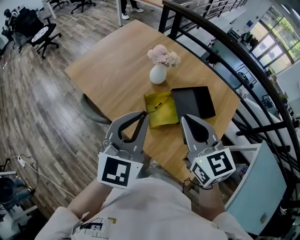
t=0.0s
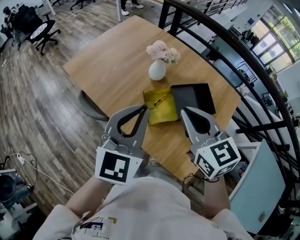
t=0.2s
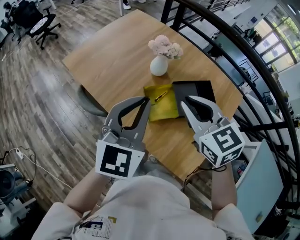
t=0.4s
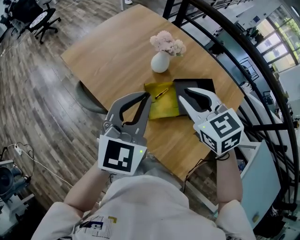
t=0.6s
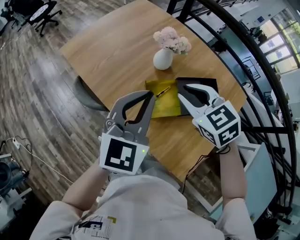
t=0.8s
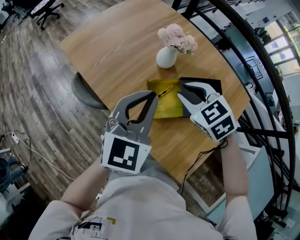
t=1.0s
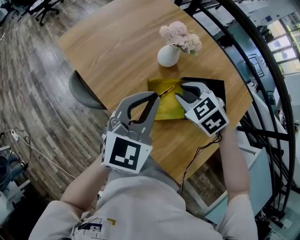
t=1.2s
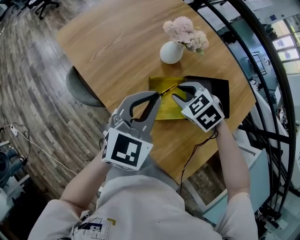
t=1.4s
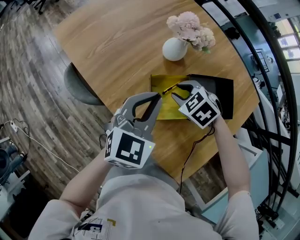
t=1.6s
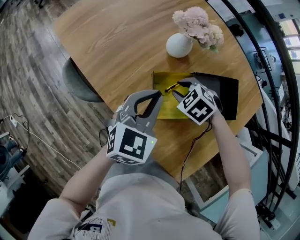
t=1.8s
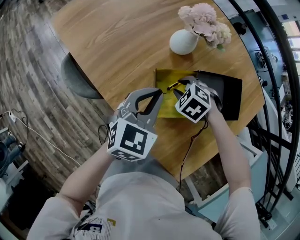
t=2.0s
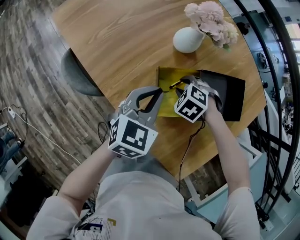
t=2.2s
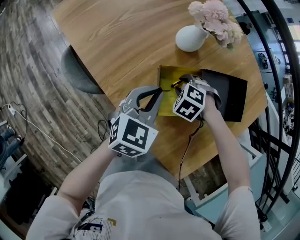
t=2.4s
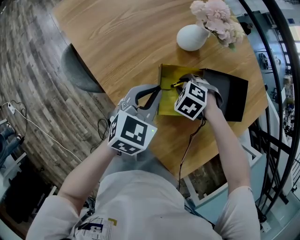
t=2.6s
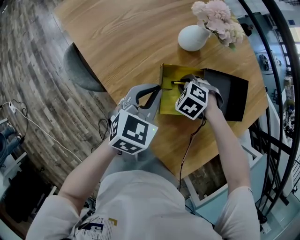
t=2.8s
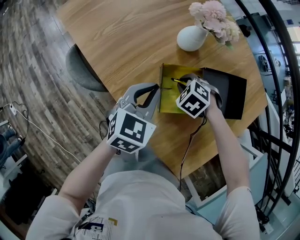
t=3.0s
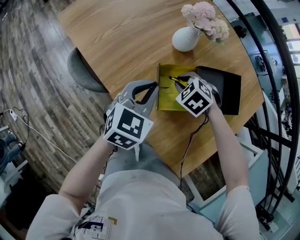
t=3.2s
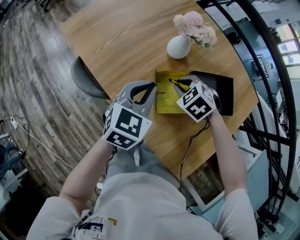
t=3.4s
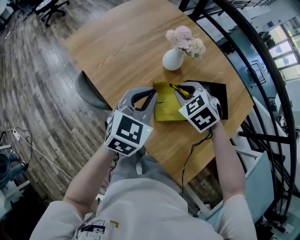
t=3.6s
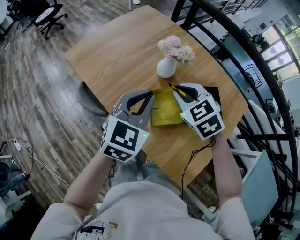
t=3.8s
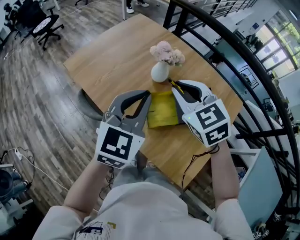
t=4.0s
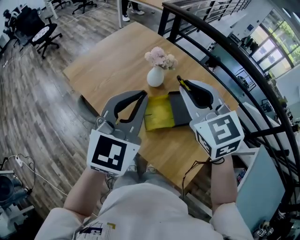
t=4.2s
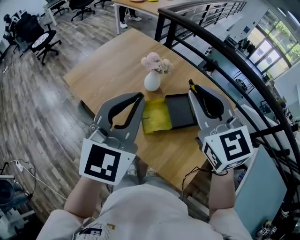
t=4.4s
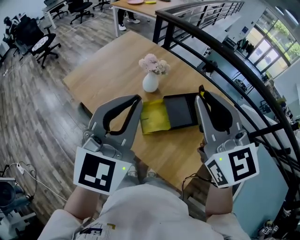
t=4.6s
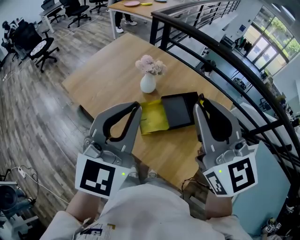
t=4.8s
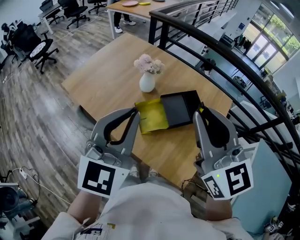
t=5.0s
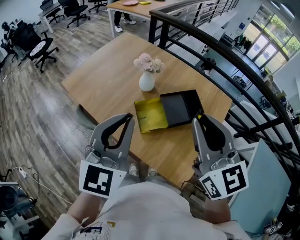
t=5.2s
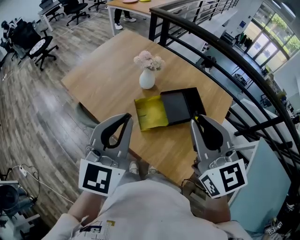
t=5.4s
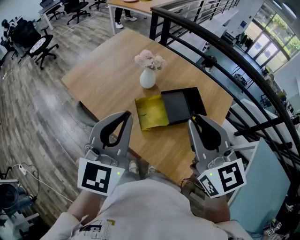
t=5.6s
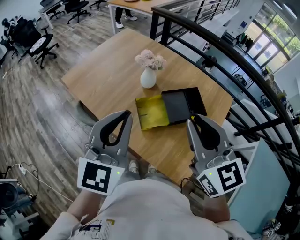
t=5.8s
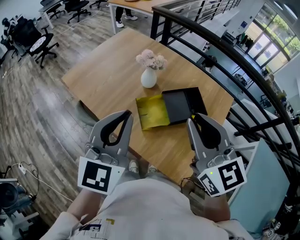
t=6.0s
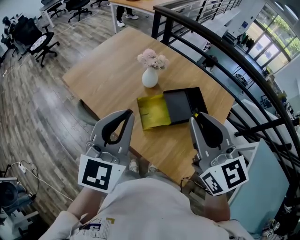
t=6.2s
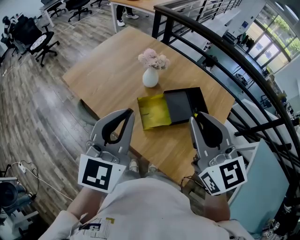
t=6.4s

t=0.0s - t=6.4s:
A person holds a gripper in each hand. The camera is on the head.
t=0.0s - t=1.6s: Both grippers move downward and forward, approximately 30 cm. The right gripper tilts its fingers some 50 degrees downward, and opens.
t=1.6s - t=3.2s: Both grippers move downward, approximately 5 cm.
t=3.2s - t=4.8s: The left gripper shifts roughly 40 cm upward and backward, and tips its fingers upward by some 30 degrees. The right gripper is displaced upward by some 50 cm, and tips its fingers upward by approximately 70 degrees.
t=4.8s - t=6.4s: Both grippers travel together downward, about 5 cm.

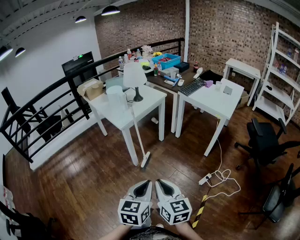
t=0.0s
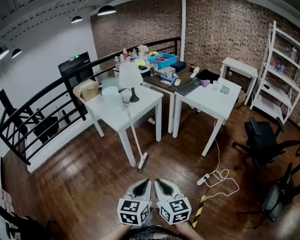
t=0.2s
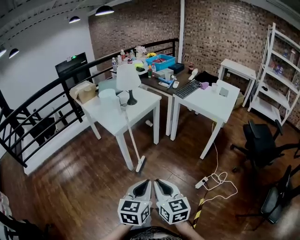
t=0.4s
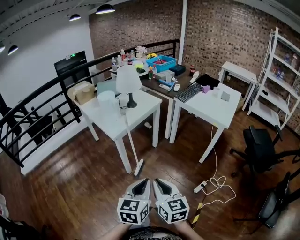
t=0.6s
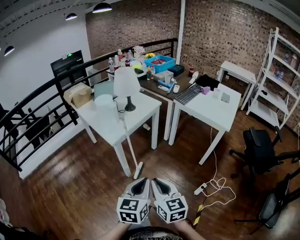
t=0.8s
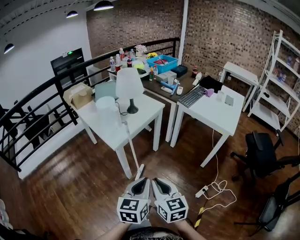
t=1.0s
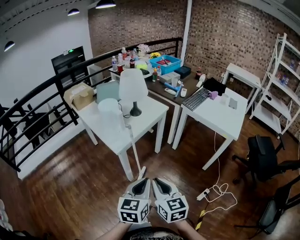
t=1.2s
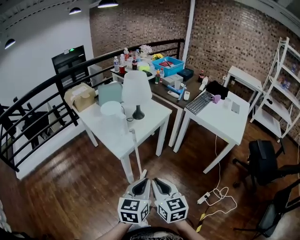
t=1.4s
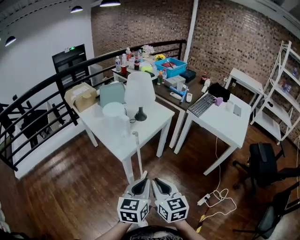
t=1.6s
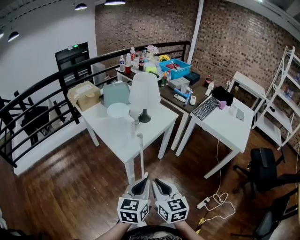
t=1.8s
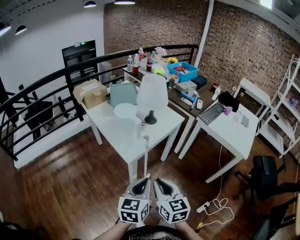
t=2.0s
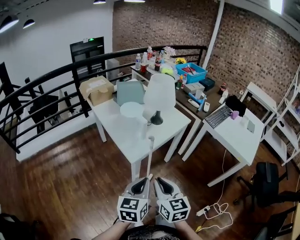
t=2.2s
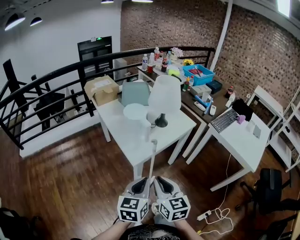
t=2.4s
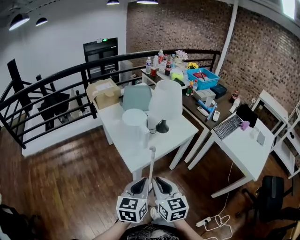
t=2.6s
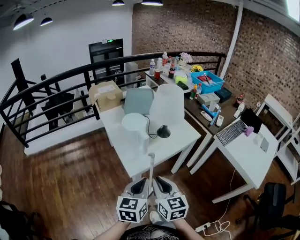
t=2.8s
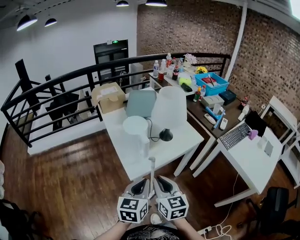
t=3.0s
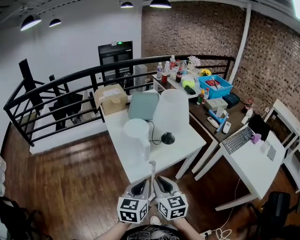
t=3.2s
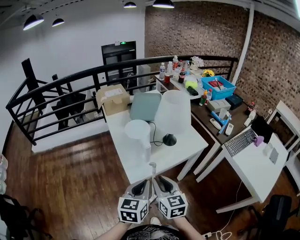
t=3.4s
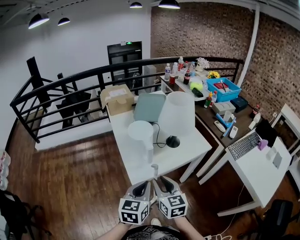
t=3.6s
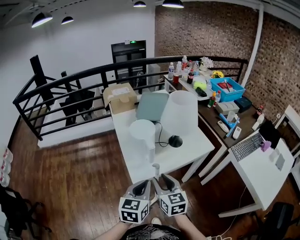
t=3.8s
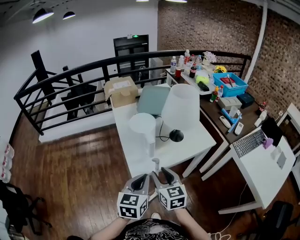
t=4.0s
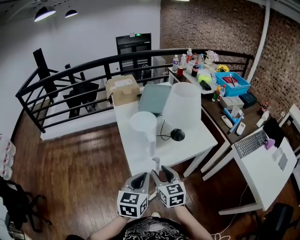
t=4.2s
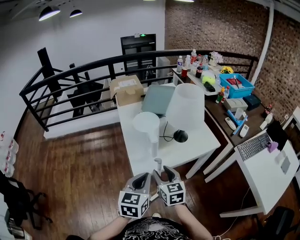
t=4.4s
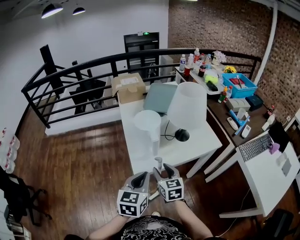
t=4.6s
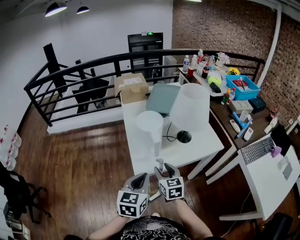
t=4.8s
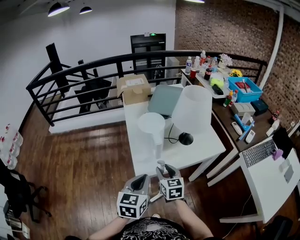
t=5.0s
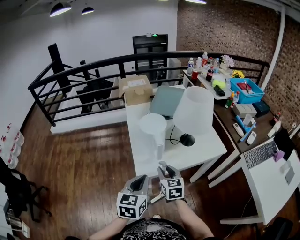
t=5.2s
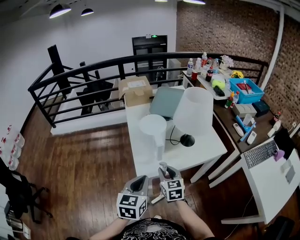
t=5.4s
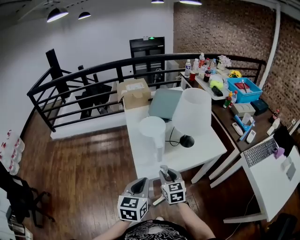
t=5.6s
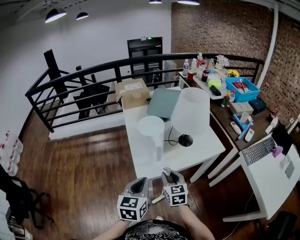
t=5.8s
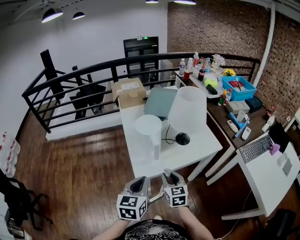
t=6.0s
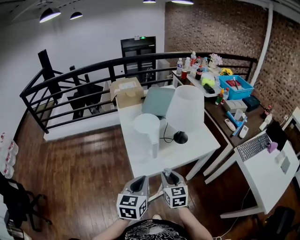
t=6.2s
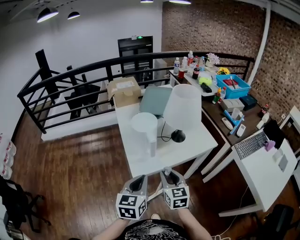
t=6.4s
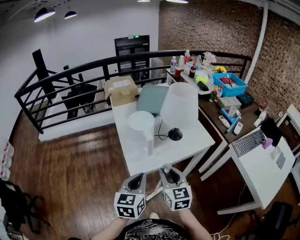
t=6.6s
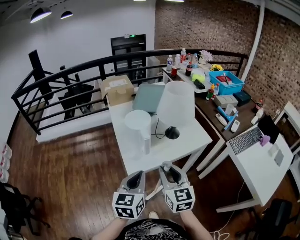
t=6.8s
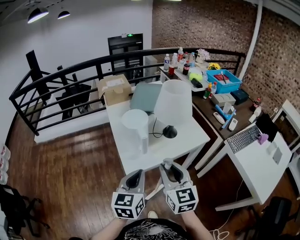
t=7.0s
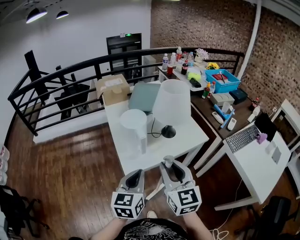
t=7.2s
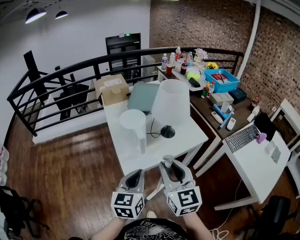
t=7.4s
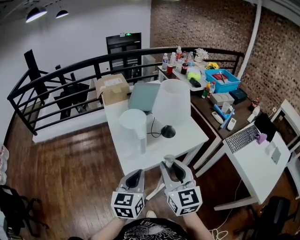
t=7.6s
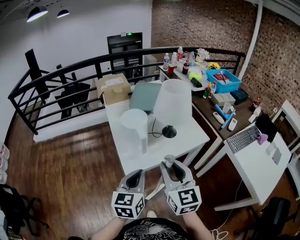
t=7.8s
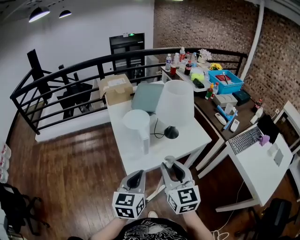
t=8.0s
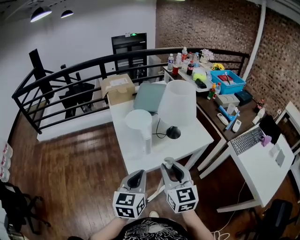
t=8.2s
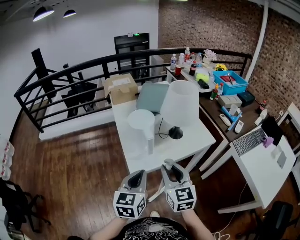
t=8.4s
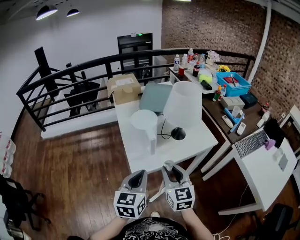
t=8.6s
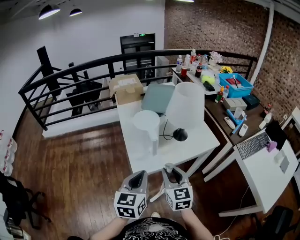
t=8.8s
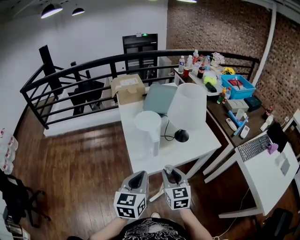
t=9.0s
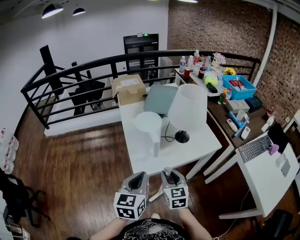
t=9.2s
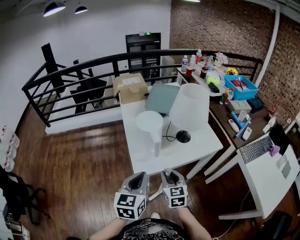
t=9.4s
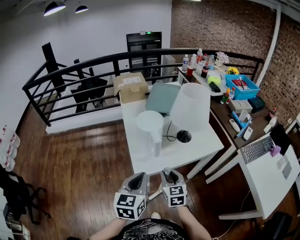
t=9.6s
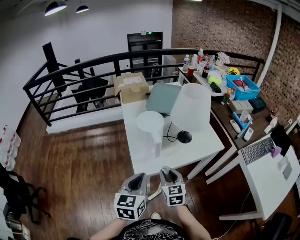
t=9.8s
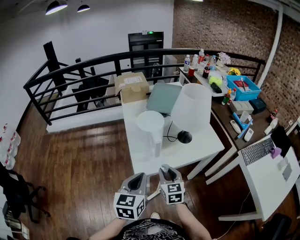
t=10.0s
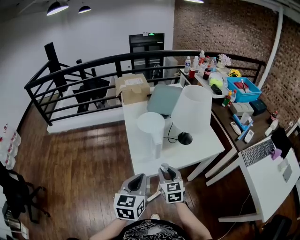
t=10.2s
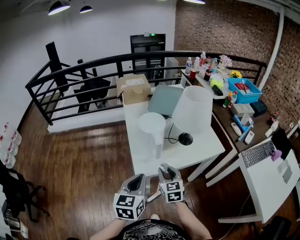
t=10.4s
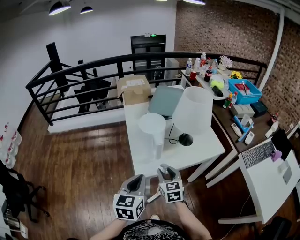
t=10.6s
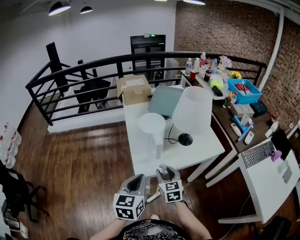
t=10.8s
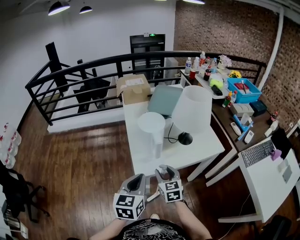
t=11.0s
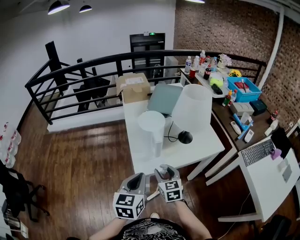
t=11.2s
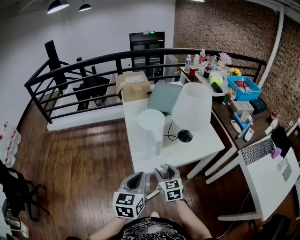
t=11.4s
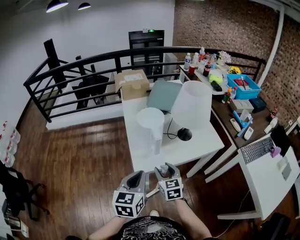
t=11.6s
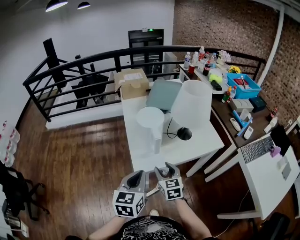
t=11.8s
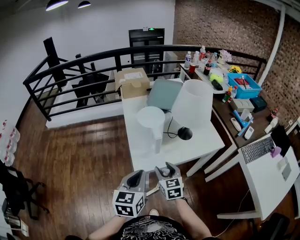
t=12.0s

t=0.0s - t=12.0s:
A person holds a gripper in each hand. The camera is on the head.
t=0.0s - t=1.6s: Both grippers travel together forward, roughly 30 cm.
t=1.6s - t=3.0s: The two grippers go about 15 cm forward.
t=3.0s - t=4.4s: The right gripper shifts approximately 10 cm forward and downward, and opens its fingers.
t=4.4s - t=6.0s: The grippers stay close to where they were, moving slightly.
t=6.0s - t=7.6s: The left gripper ends up about 5 cm from where it was. The right gripper moves upward, about 20 cm.
t=7.6s - t=9.0s: The right gripper goes about 15 cm downward.
t=9.0s - t=10.4s: The right gripper moves downward, about 5 cm.
t=10.4s - t=12.0s: The right gripper opens.

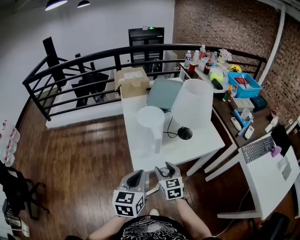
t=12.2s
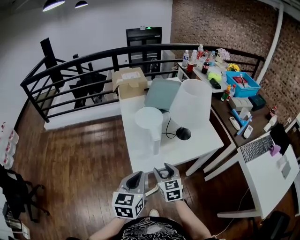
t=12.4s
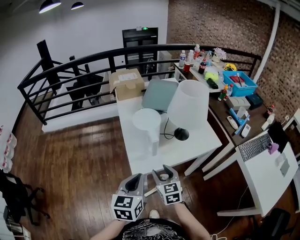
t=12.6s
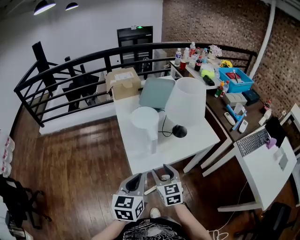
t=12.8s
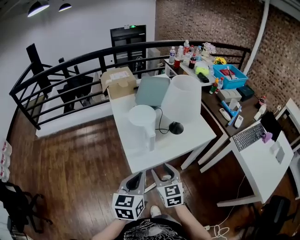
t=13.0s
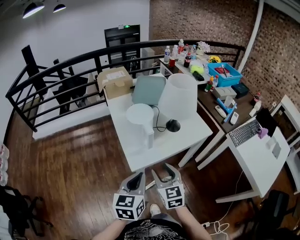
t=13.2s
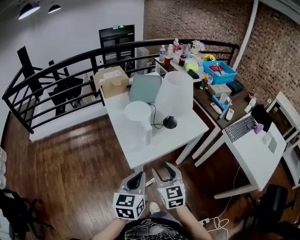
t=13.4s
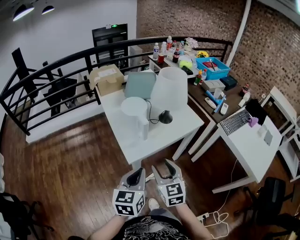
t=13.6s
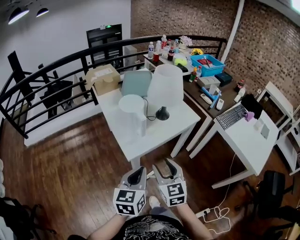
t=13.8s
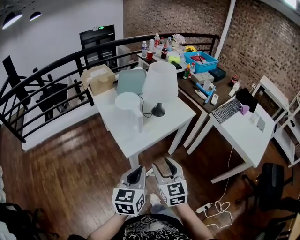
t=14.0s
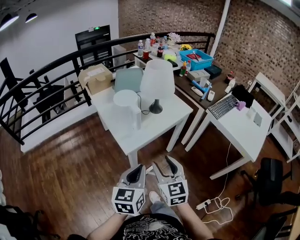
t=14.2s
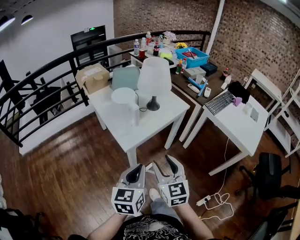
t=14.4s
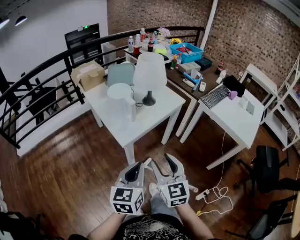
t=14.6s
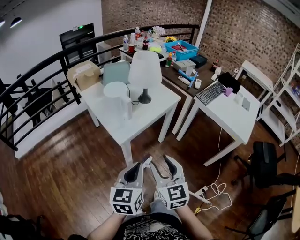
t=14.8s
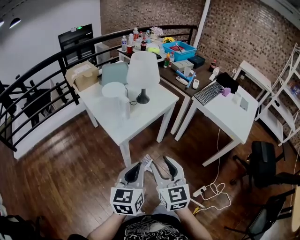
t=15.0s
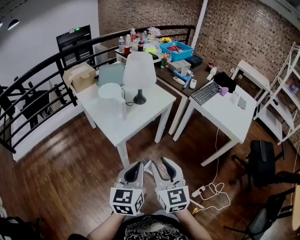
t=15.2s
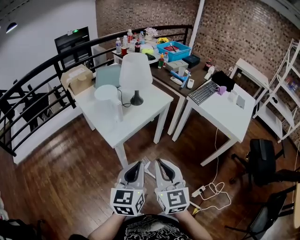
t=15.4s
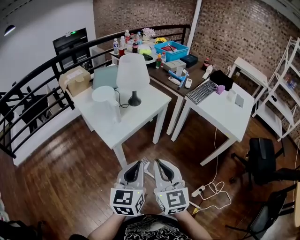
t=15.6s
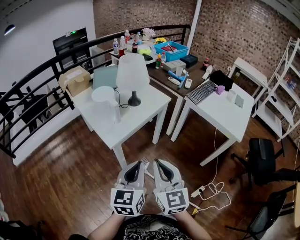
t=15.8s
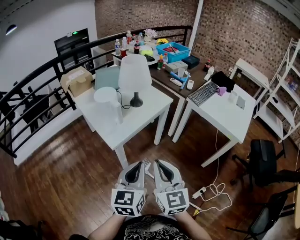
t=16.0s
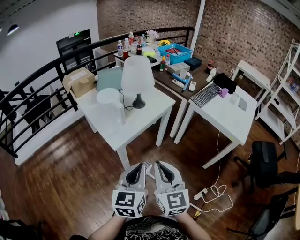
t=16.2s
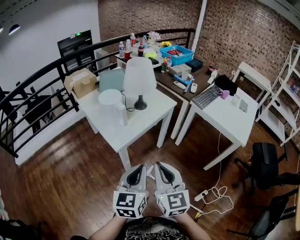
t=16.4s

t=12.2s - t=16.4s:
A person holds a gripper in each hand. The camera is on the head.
t=12.2s - t=13.6s: The right gripper is displaced backward and upward by approximately 15 cm, while the left gripper travels backward by about 5 cm.
t=13.6s - t=15.0s: The left gripper shifts about 10 cm backward, while the right gripper heads backward and upward, covering some 15 cm.
t=15.0s - t=16.4s: The right gripper closes its fingers.

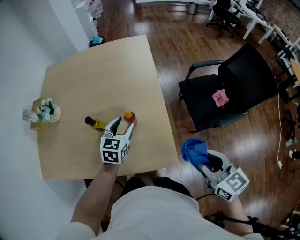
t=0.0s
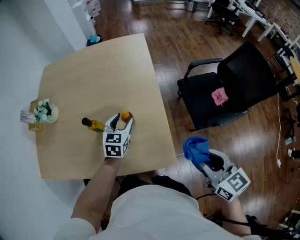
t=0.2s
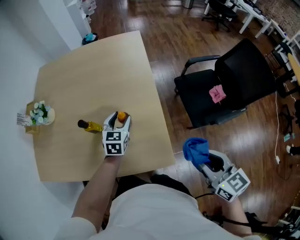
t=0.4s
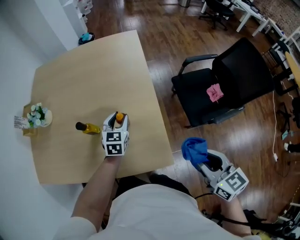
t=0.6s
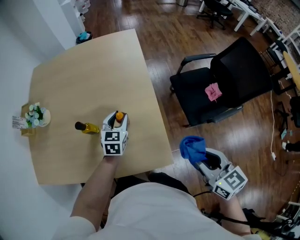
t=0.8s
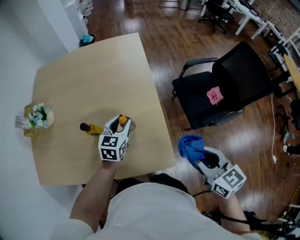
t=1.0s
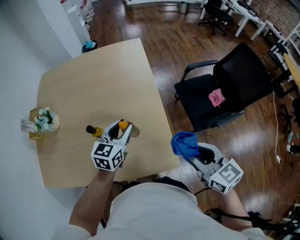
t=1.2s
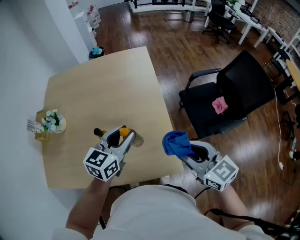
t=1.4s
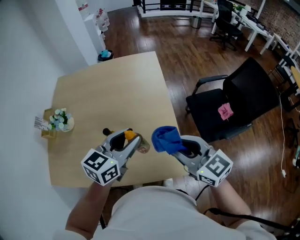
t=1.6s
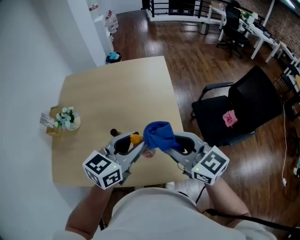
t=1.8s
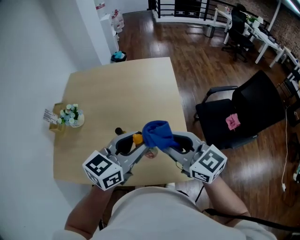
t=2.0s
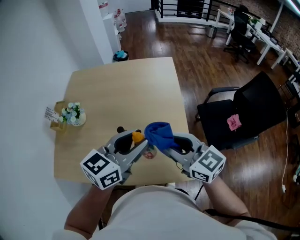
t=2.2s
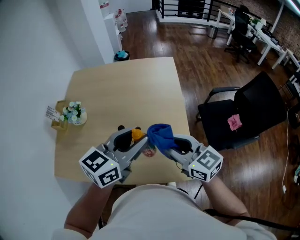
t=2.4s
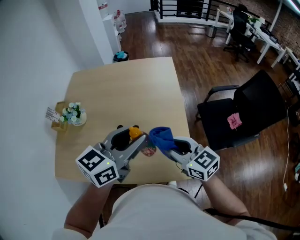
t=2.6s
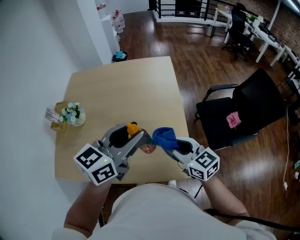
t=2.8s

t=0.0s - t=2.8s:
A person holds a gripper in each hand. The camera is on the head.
t=0.0s - t=1.4s: The right gripper is displaced to the left and forward by some 10 cm. Meanwhile the left gripper moves upward, about 10 cm.
t=1.4s - t=2.8s: The left gripper shifts about 15 cm upward; the right gripper is displaced to the left by roughly 10 cm.
